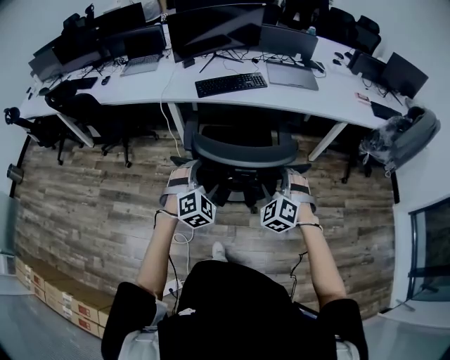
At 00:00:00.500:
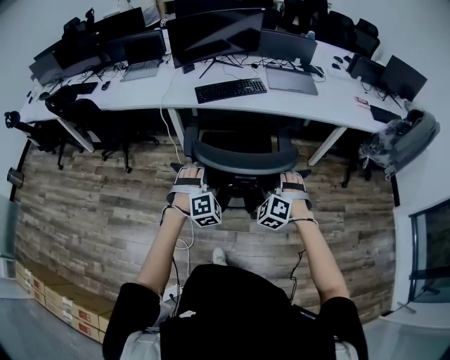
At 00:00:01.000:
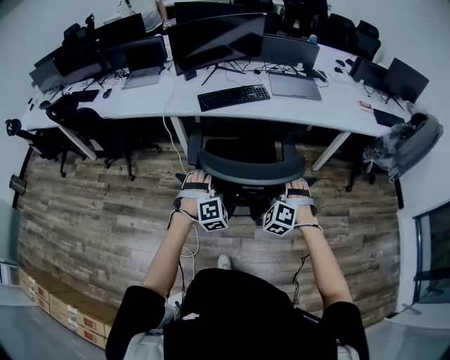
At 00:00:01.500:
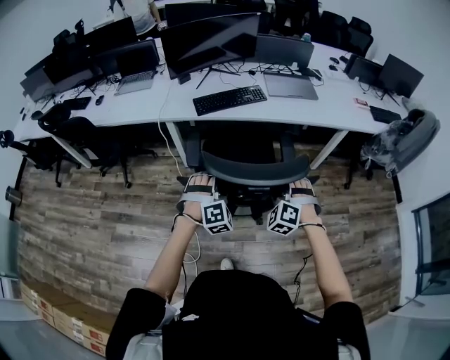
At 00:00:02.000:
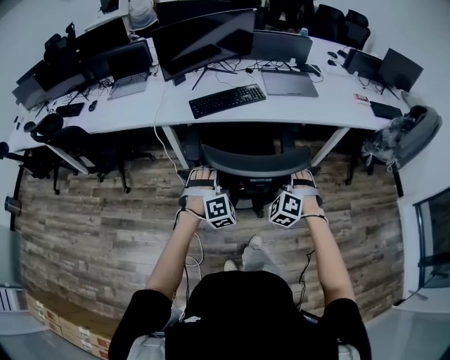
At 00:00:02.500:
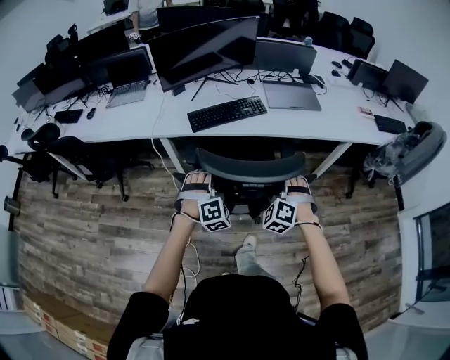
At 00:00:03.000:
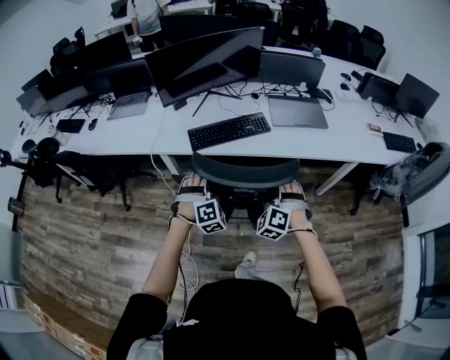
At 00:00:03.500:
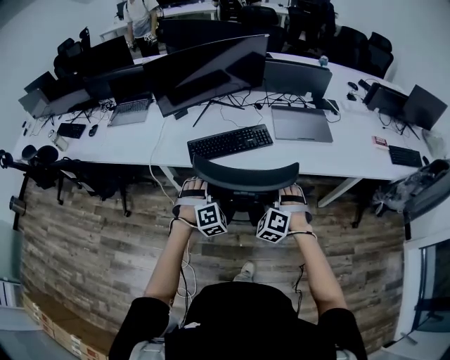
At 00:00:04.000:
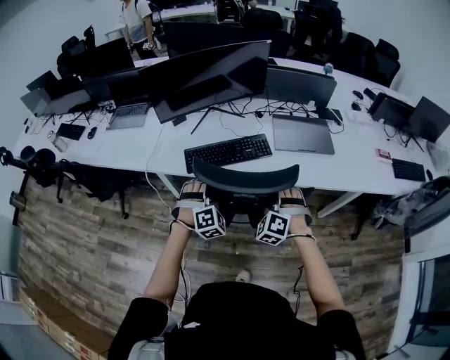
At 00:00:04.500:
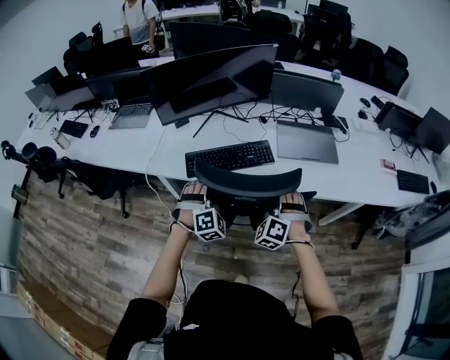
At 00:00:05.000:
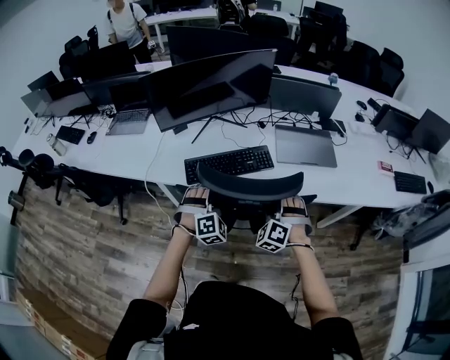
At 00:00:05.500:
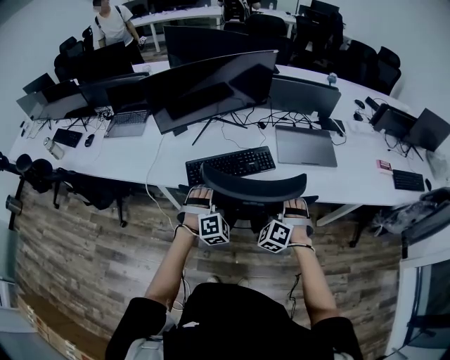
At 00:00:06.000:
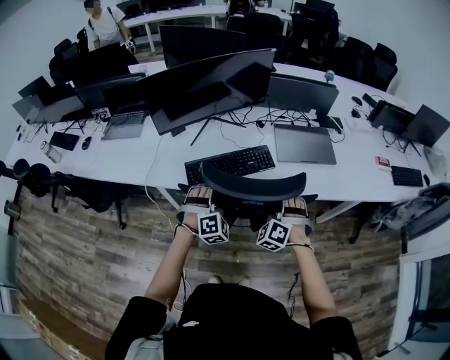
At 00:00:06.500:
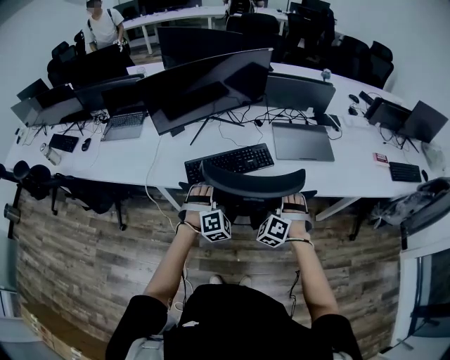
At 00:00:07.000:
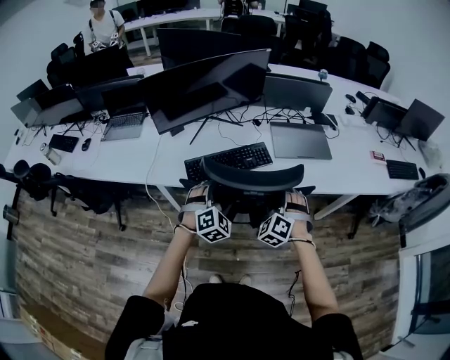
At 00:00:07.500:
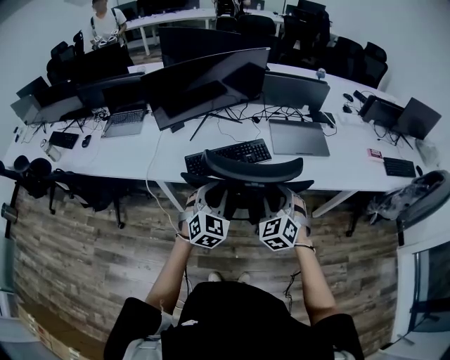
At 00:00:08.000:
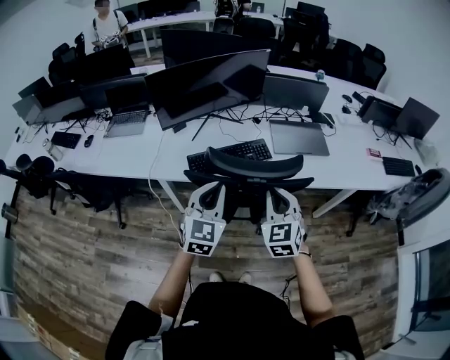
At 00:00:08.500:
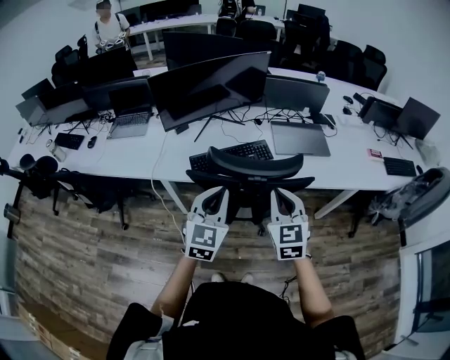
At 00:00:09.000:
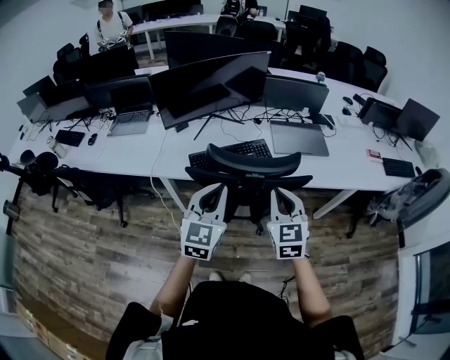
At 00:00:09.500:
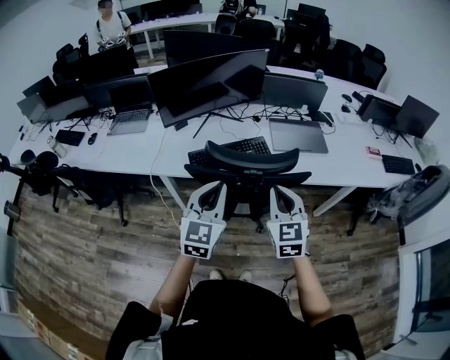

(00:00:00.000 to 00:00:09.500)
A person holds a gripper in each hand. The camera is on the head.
00:00:00.000 - 00:00:02.000: Both grippers move forward, about 15 cm.
00:00:02.000 - 00:00:04.000: Both grippers travel together forward, roughly 30 cm.
00:00:04.000 - 00:00:05.500: The grippers make only small movements.
00:00:05.500 - 00:00:07.500: The grippers both shift upward and backward by approximately 10 cm. The right gripper changes its angle by about 30 degrees, and closes. Meanwhile the left gripper rotates roughly 40 degrees, and closes its fingers.
00:00:07.500 - 00:00:09.500: Both grippers travel together upward and backward, approximately 15 cm. The left gripper changes its angle by roughly 30 degrees. The right gripper turns by approximately 30 degrees, and closes up.

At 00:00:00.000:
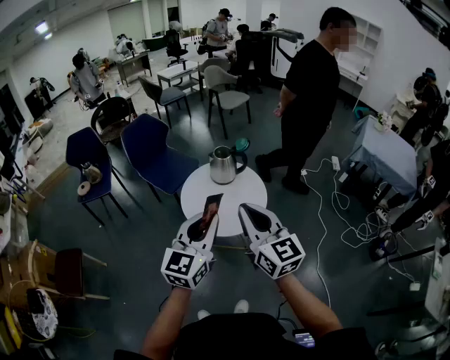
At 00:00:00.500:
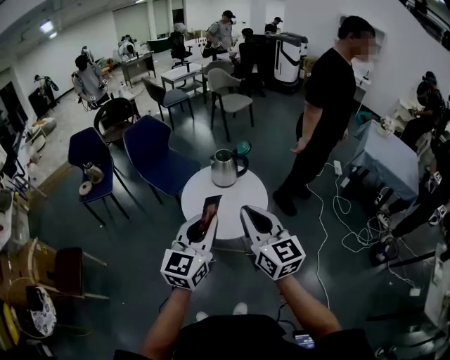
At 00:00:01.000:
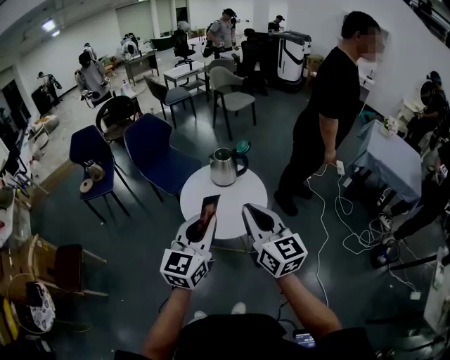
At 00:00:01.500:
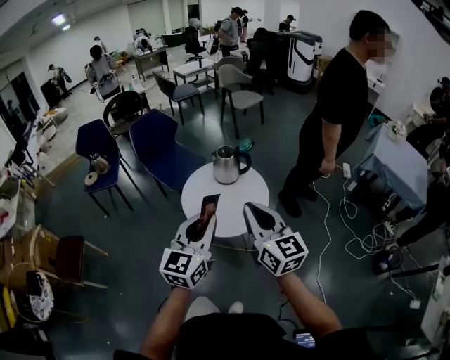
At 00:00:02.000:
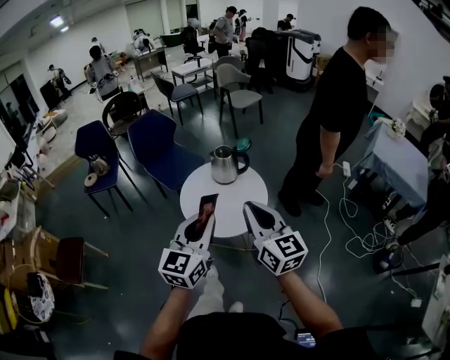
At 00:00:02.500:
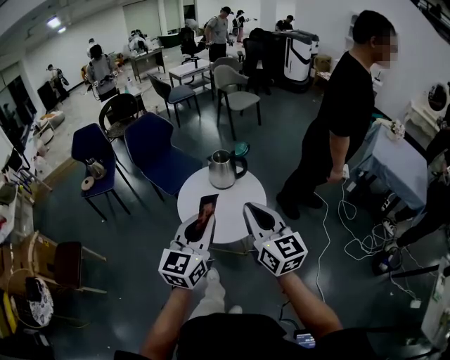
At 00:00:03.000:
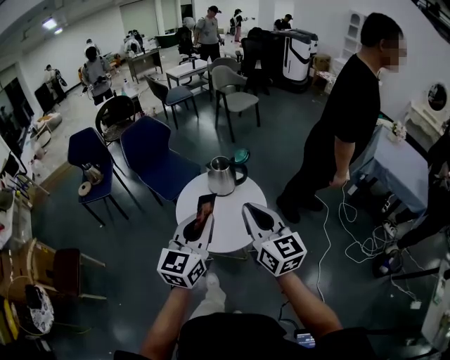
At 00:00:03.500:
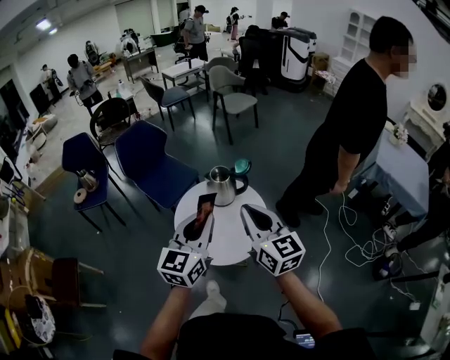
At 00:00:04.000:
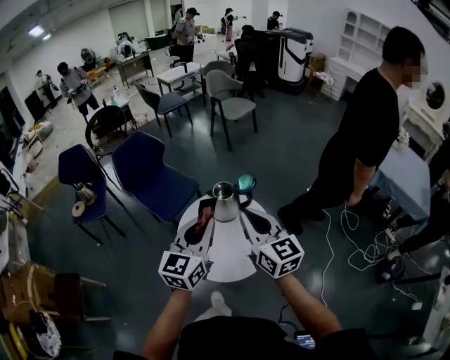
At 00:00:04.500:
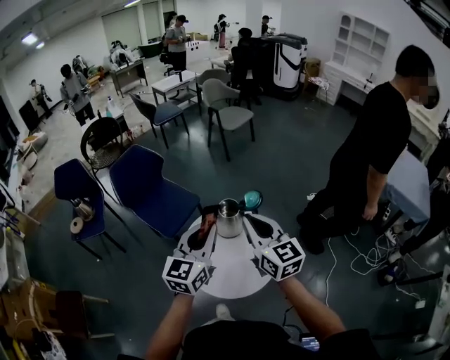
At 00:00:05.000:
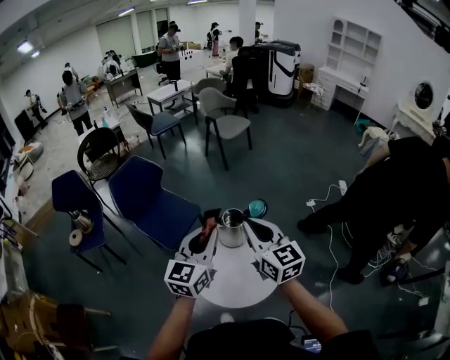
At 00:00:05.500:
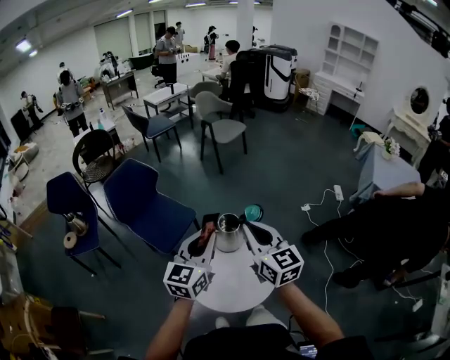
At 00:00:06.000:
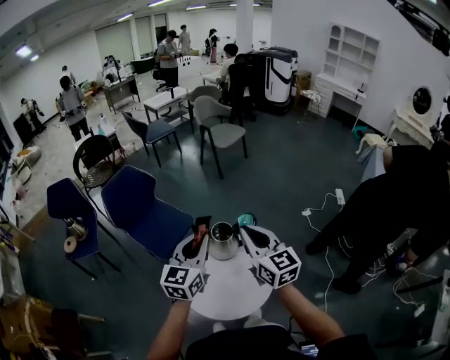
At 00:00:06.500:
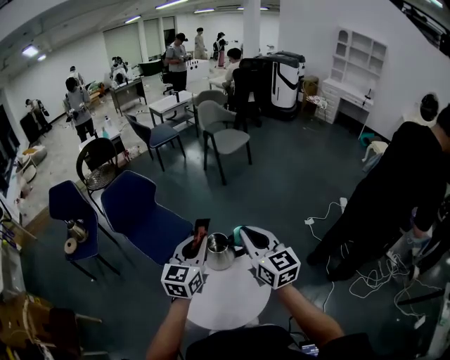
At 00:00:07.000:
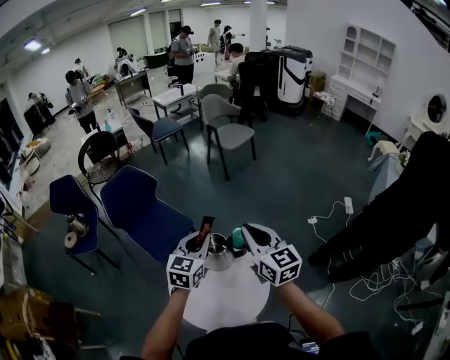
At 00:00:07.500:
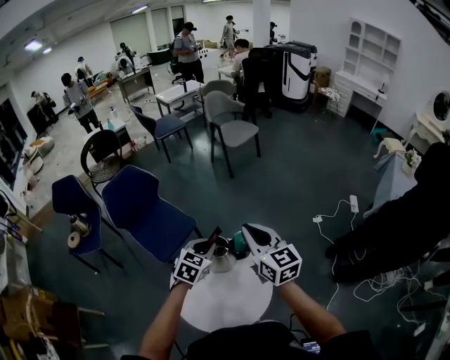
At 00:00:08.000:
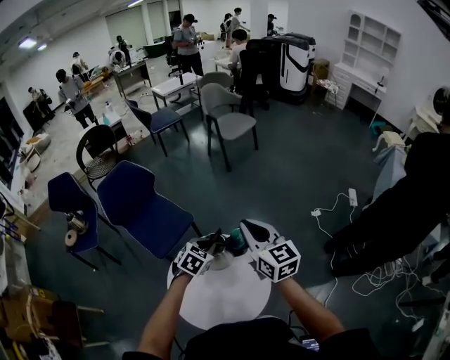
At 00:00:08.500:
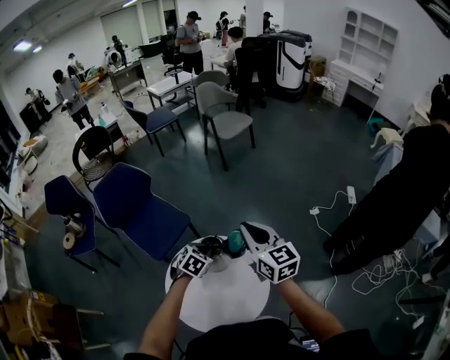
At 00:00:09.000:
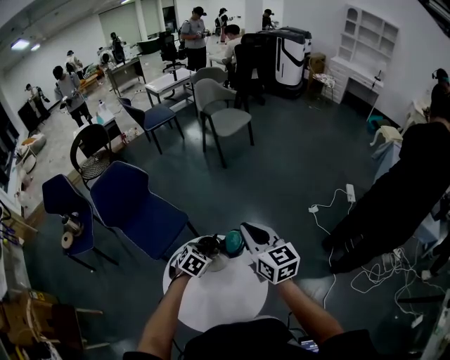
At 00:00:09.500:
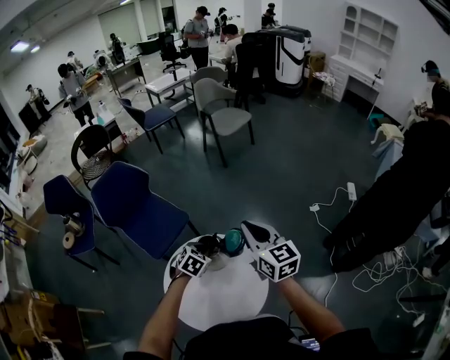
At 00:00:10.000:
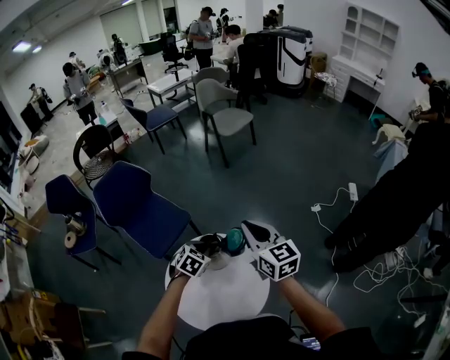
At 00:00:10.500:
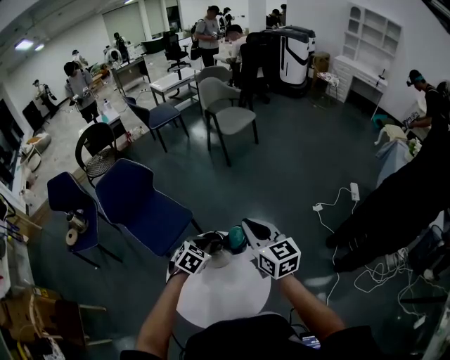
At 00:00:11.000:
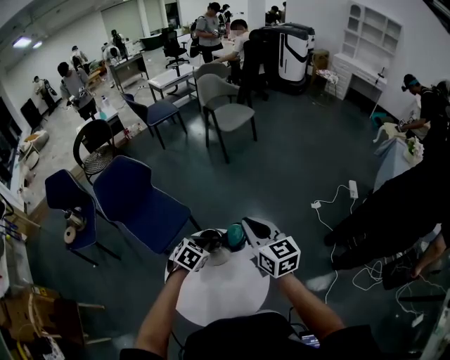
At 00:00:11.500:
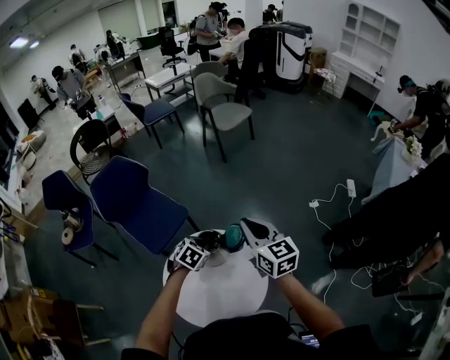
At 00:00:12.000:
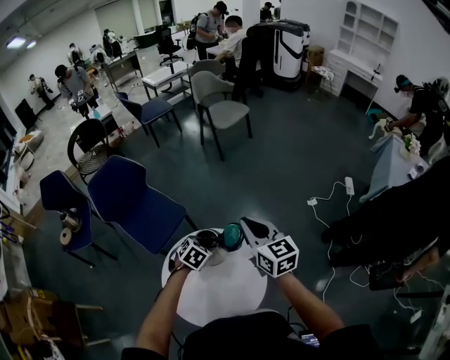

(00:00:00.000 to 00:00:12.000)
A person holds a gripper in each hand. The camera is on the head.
00:00:00.000 - 00:00:02.000: Both grippers move to the right, approximately 5 cm.
00:00:02.000 - 00:00:04.000: Both grippers travel together forward, about 30 cm.
00:00:04.000 - 00:00:06.000: The two grippers go roughly 15 cm forward.
00:00:06.000 - 00:00:08.000: The right gripper moves forward and to the right, approximately 20 cm, while the left gripper moves downward, forward and to the right, roughly 30 cm, and points its fingers approximately 40 degrees further downward.
00:00:10.000 - 00:00:12.000: The grippers make only small movements.

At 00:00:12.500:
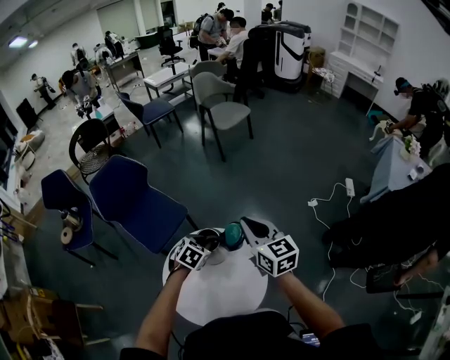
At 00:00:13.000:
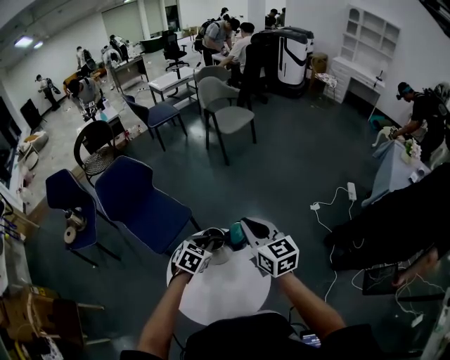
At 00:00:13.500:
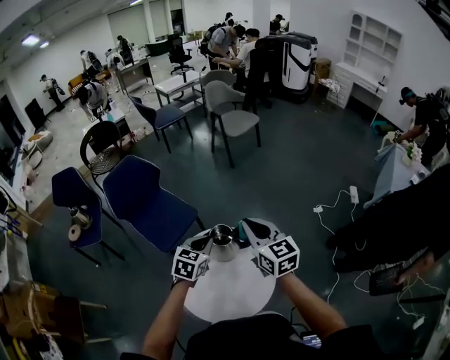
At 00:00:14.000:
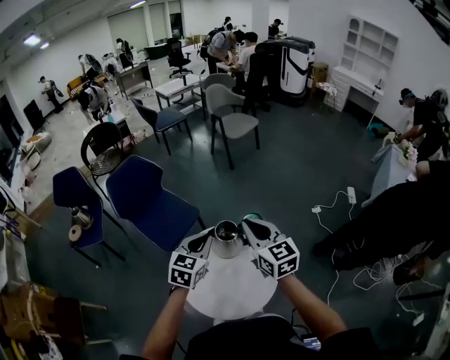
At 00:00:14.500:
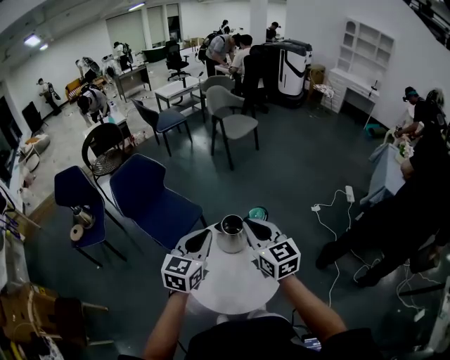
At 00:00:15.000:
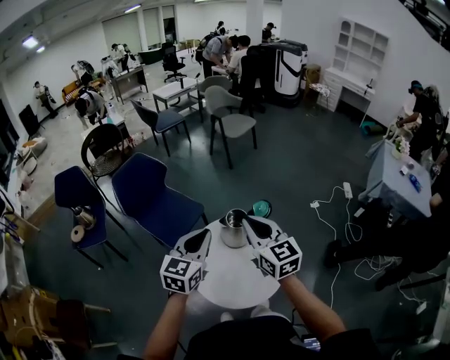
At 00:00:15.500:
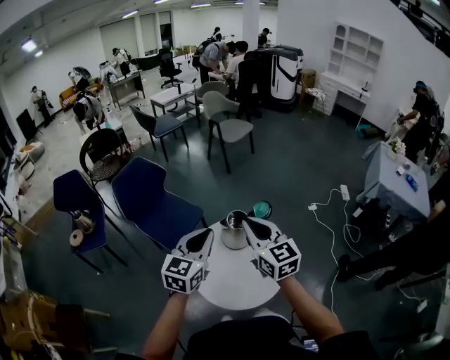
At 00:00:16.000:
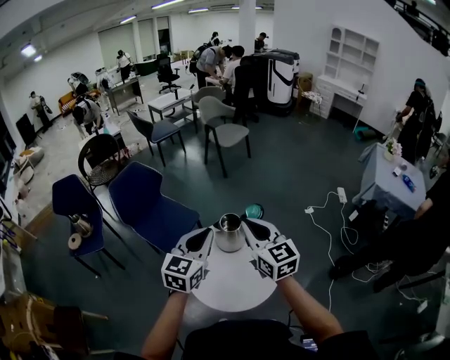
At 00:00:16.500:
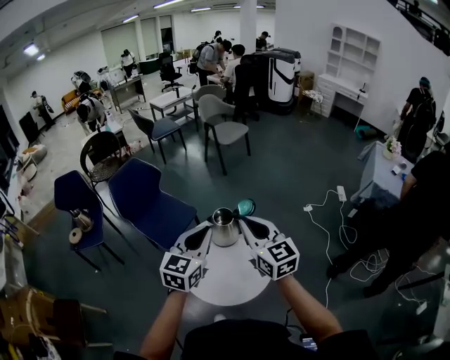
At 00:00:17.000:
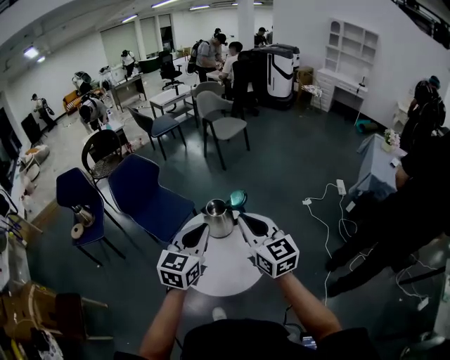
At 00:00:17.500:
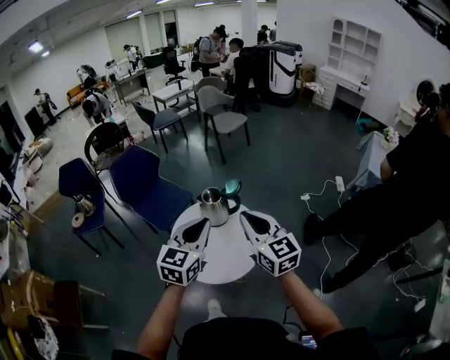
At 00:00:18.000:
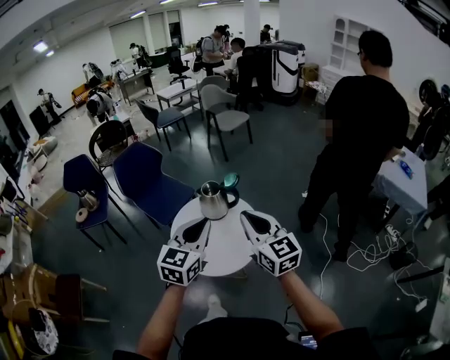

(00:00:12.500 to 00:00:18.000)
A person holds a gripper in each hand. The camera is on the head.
00:00:12.500 - 00:00:14.500: The left gripper goes some 30 cm upward, backward and to the left, and tips its fingers upward by some 40 degrees. Meanwhile the right gripper is displaced backward, to the left and upward by roughly 20 cm.
00:00:14.500 - 00:00:16.000: Both grippers travel together backward, roughly 5 cm.
00:00:16.000 - 00:00:18.000: Both grippers travel together backward and to the right, roughly 25 cm.
